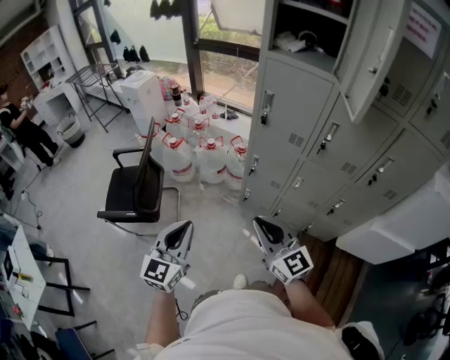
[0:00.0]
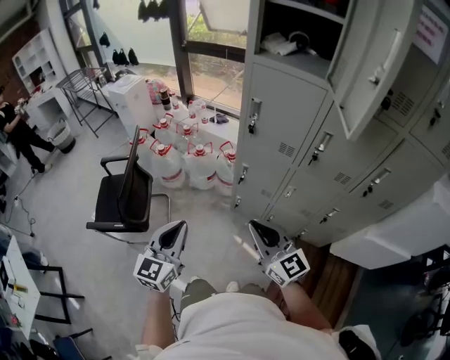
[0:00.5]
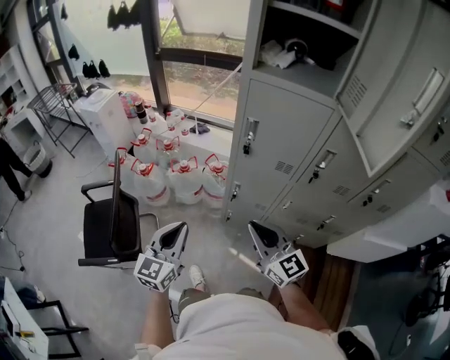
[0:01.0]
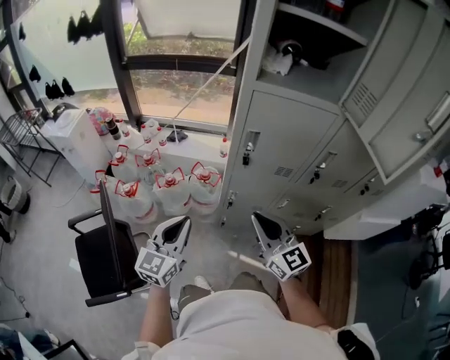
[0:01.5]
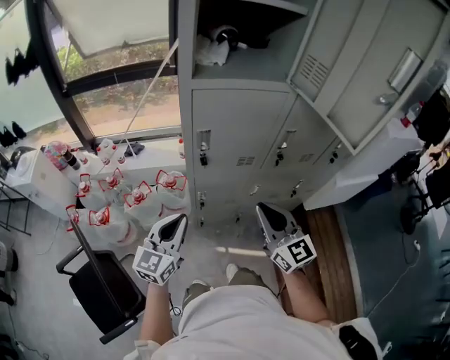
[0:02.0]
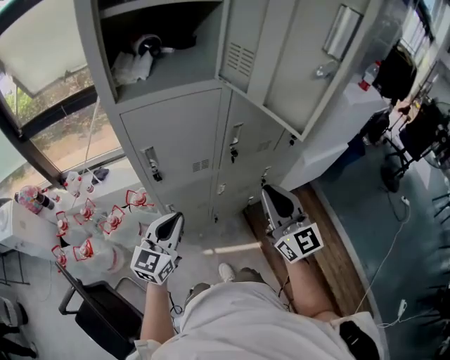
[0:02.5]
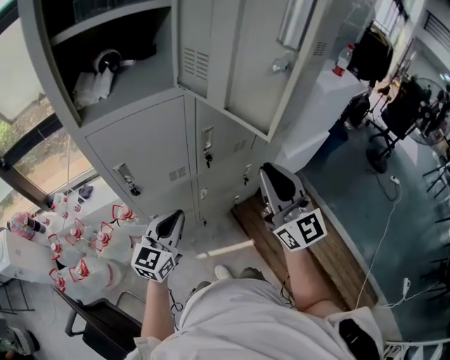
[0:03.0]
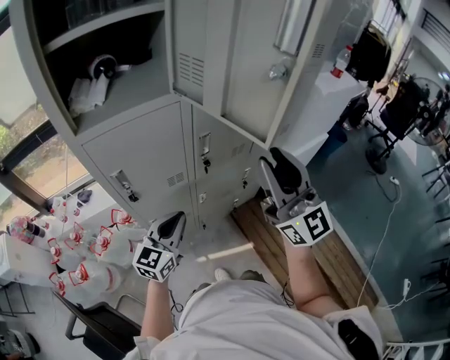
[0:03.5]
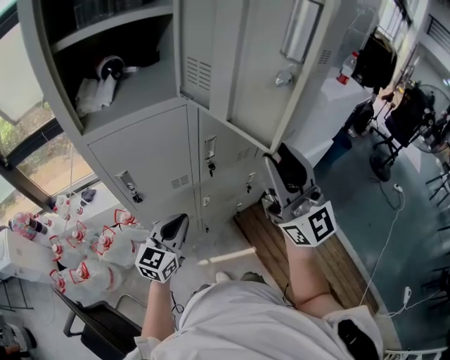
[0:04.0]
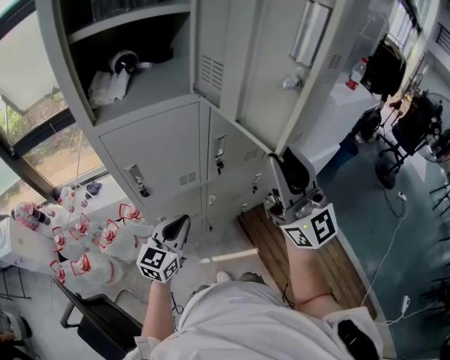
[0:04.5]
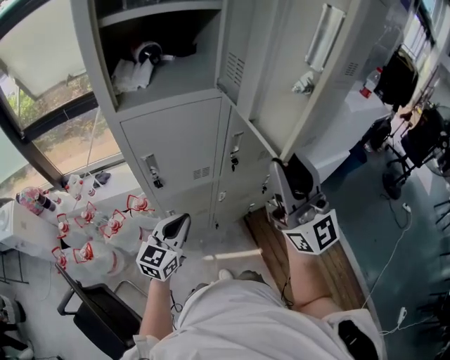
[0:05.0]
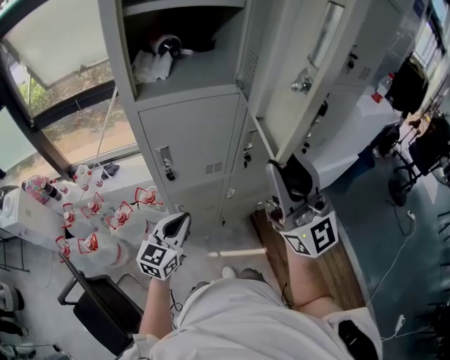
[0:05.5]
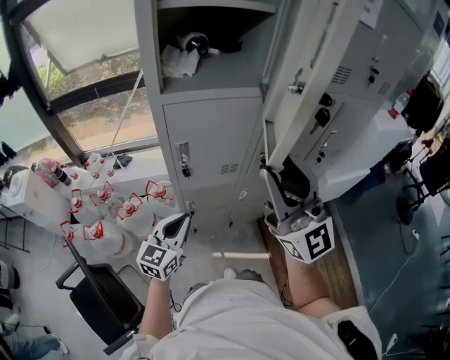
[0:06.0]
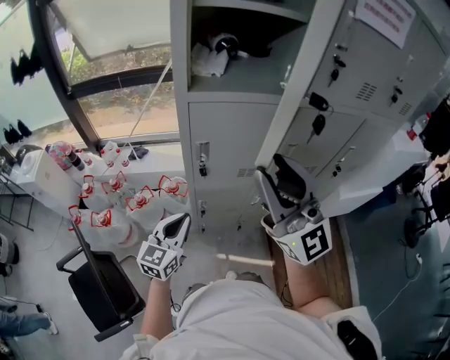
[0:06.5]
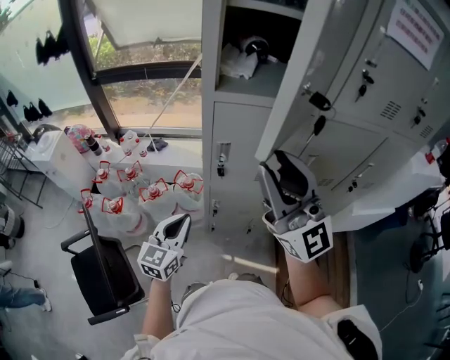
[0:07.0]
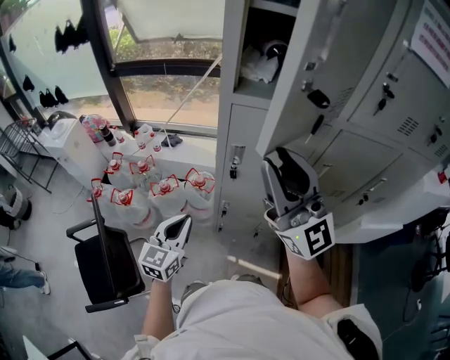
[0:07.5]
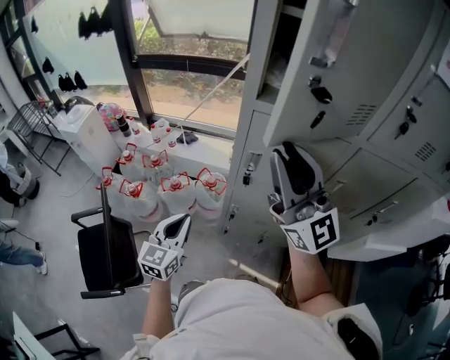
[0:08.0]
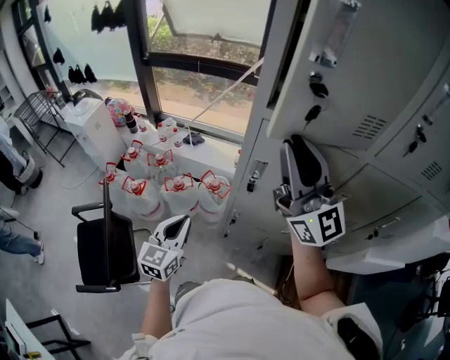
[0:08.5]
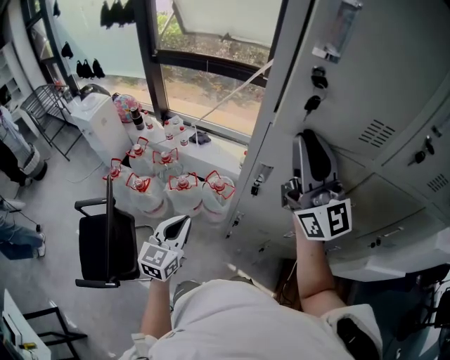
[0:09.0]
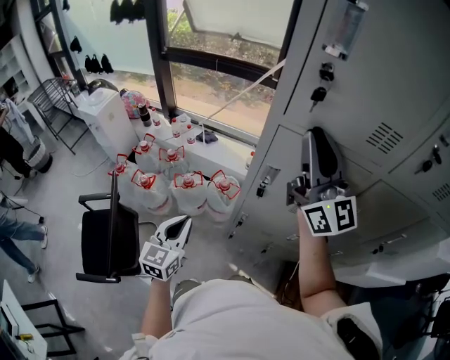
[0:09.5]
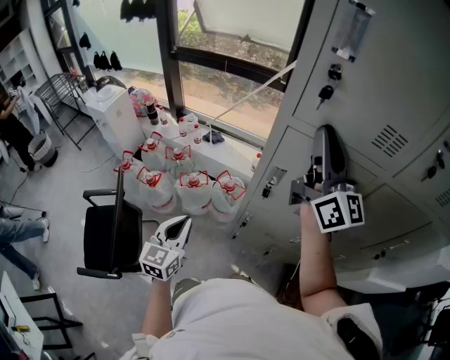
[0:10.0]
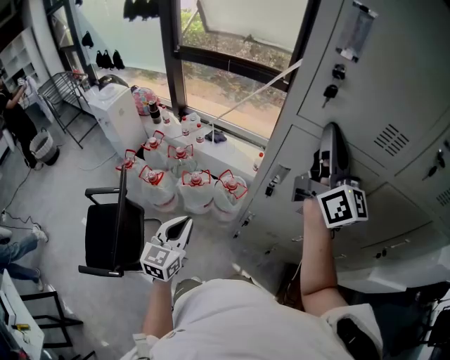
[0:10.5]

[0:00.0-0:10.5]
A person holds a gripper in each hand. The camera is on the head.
0.0 to 2.0 s: The left gripper ends up roughly 35 cm from where it was, and changes its angle by some 40 degrees, while the right gripper moves some 25 cm, and turns by approximately 40 degrees.
2.0 to 4.0 s: The right gripper shifts roughly 25 cm upward and to the right, changes its angle by approximately 30 degrees, and opens its fingers; the left gripper heads to the right and forward, covering roughly 20 cm, and changes its angle by approximately 20 degrees.
4.0 to 6.5 s: The two grippers go about 20 cm to the left. The right gripper swivels roughly 20 degrees; the left gripper rotates approximately 20 degrees.
6.5 to 8.5 s: The right gripper shifts approximately 15 cm forward, and turns by about 20 degrees, while the left gripper shifts roughly 10 cm to the left, and swivels about 30 degrees.
8.5 to 10.5 s: The right gripper moves forward, approximately 5 cm, and turns by approximately 30 degrees.

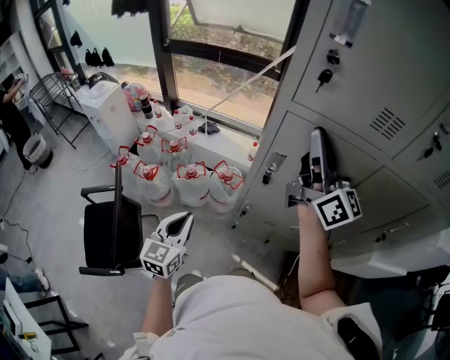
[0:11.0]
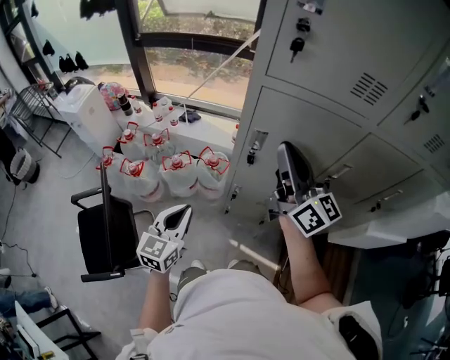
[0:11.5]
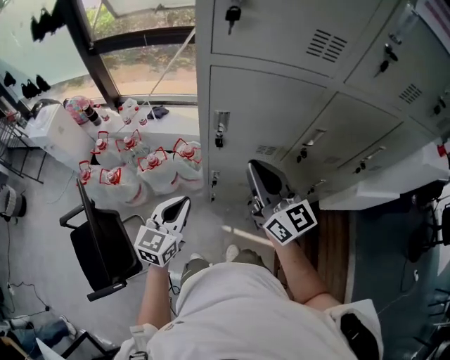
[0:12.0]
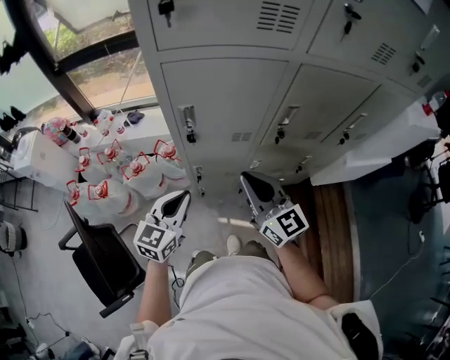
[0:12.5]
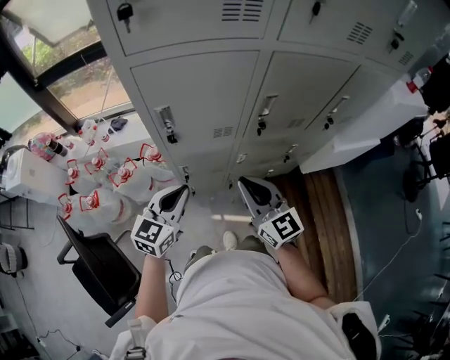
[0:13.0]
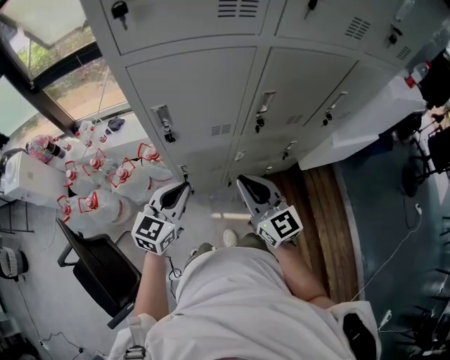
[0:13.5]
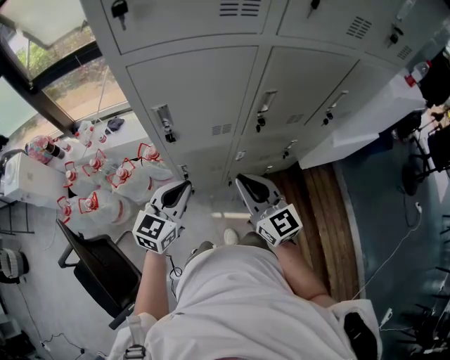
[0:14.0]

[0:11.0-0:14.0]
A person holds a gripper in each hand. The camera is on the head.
11.0 to 12.5 s: The left gripper is displaced to the right by approximately 15 cm, and rotates some 30 degrees, while the right gripper travels downward and backward by roughly 25 cm, and changes its angle by approximately 30 degrees.
12.5 to 14.0 s: The left gripper moves roughly 5 cm. The right gripper shifts by about 5 cm.

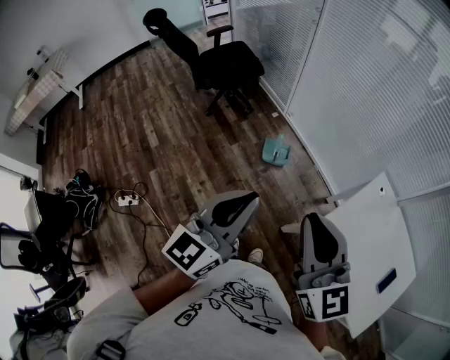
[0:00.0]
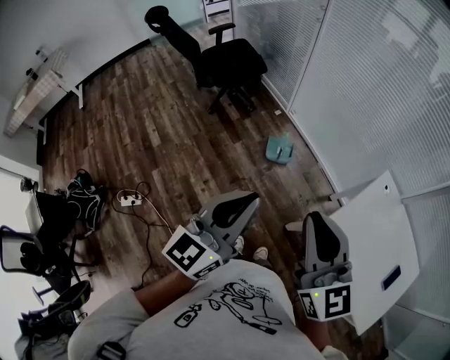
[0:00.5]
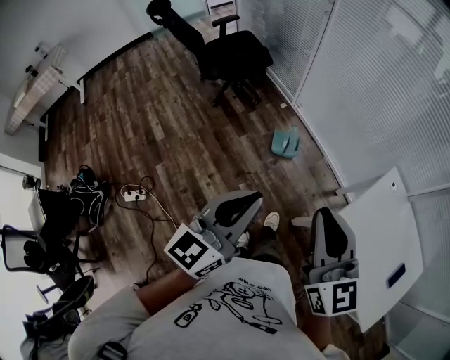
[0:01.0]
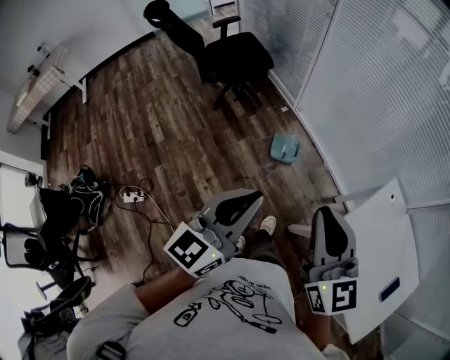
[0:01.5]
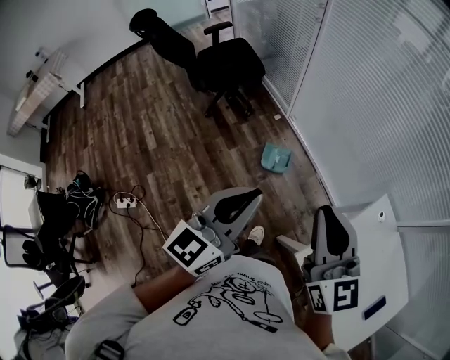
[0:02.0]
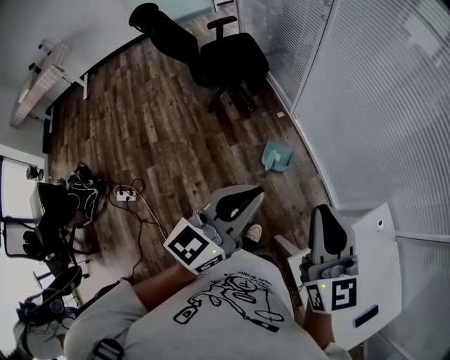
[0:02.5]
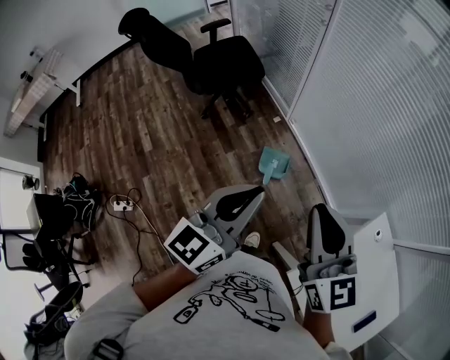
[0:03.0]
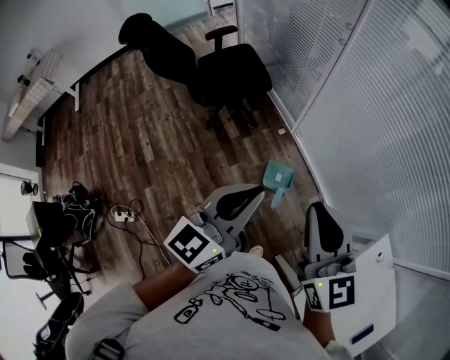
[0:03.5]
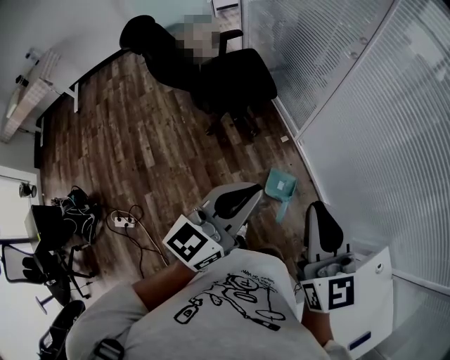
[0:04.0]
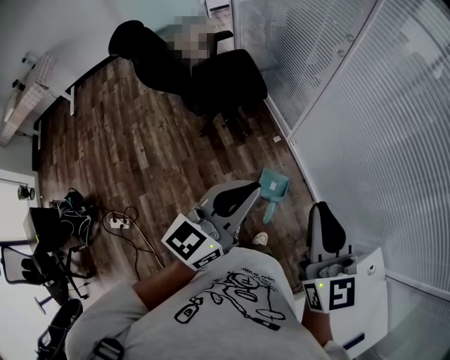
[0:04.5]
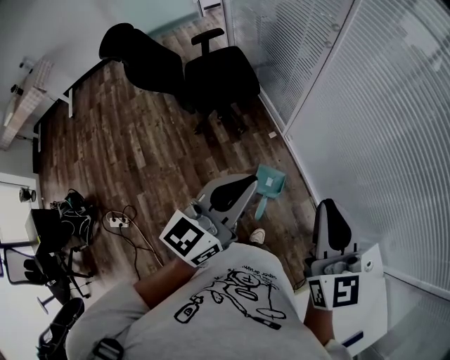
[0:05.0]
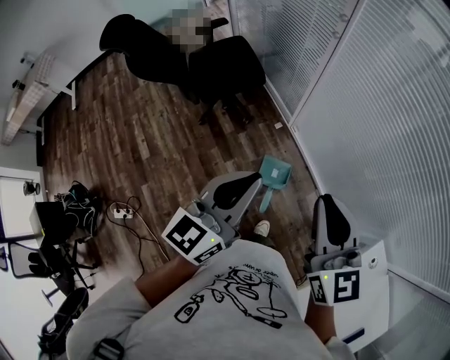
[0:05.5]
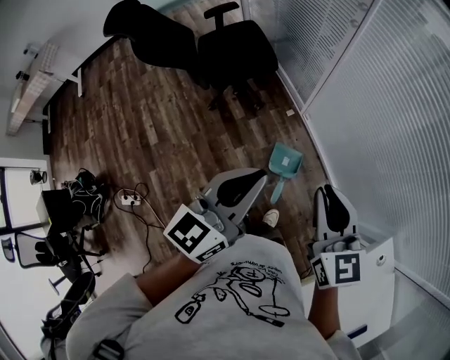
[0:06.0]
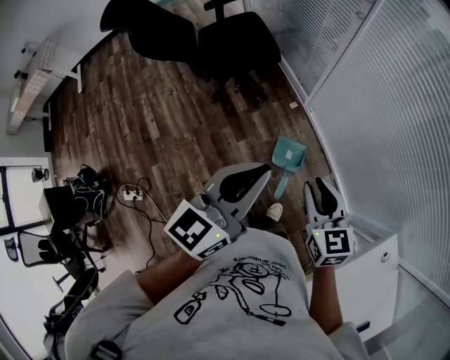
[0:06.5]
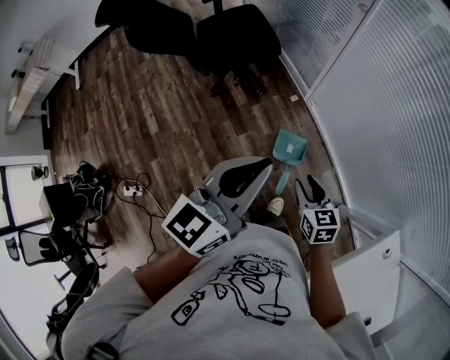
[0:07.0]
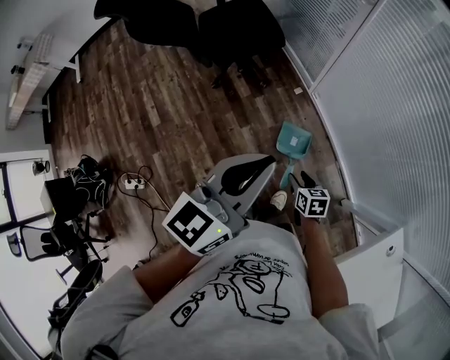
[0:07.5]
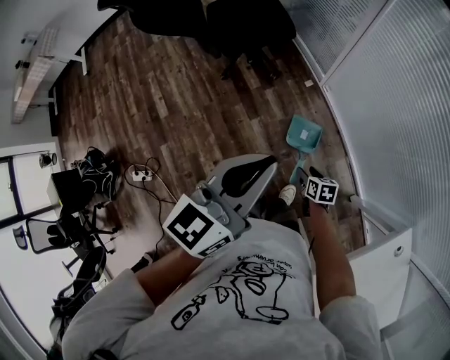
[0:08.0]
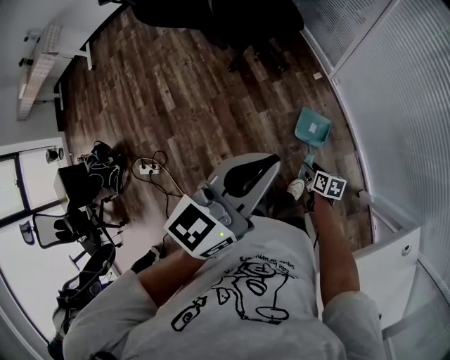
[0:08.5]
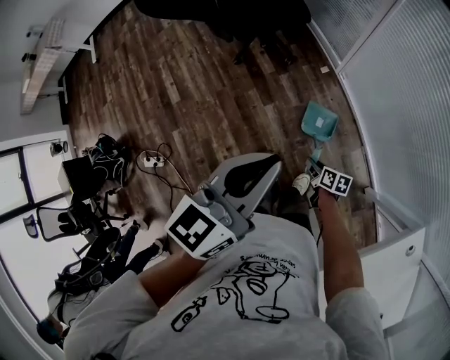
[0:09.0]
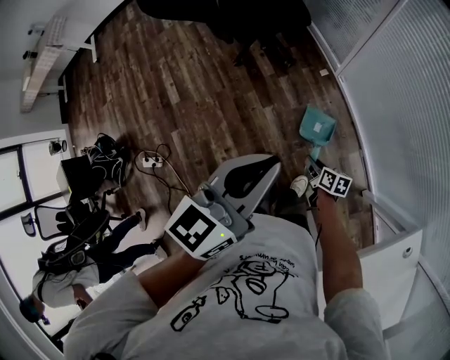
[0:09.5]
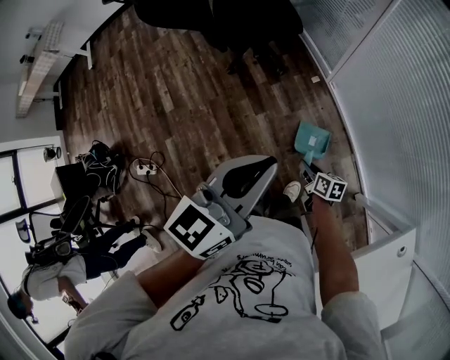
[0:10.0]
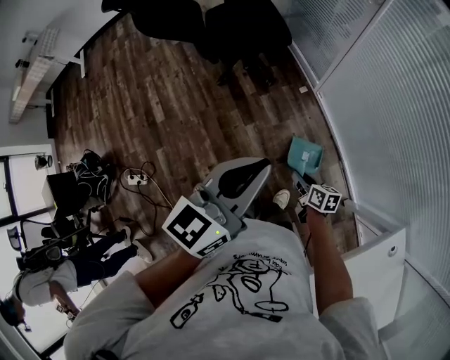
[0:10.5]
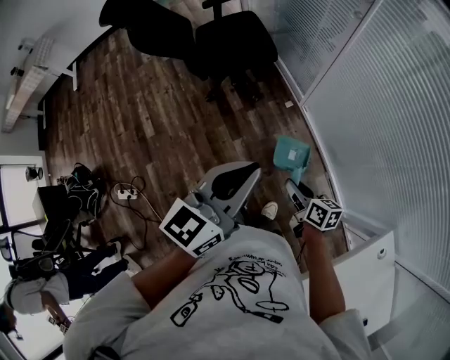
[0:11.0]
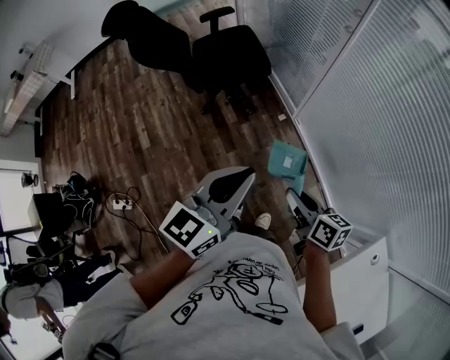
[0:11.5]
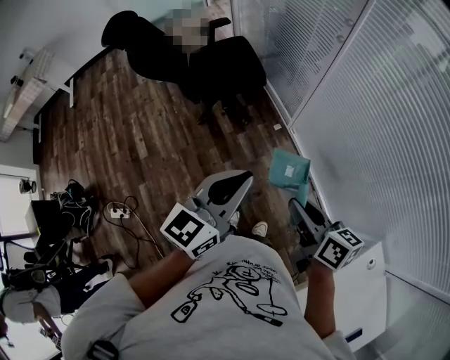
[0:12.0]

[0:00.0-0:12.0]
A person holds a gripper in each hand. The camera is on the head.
0.0 to 2.0 s: Both grippers travel together forward, some 20 cm.
2.0 to 4.0 s: The grippers both shift forward and to the left by roughly 30 cm.
4.0 to 6.0 s: The right gripper goes about 15 cm downward, to the right and forward; the left gripper is displaced to the right by about 5 cm.
6.0 to 8.0 s: The right gripper is displaced downward by about 50 cm, tilts its fingers about 40 degrees downward, and opens. The left gripper changes place by about 5 cm.
8.0 to 10.0 s: The right gripper closes up.
10.0 to 12.0 s: The right gripper goes about 40 cm upward, and rotates about 20 degrees.

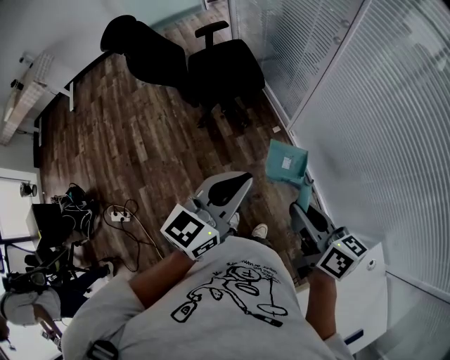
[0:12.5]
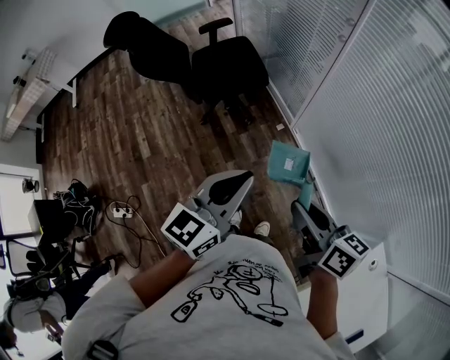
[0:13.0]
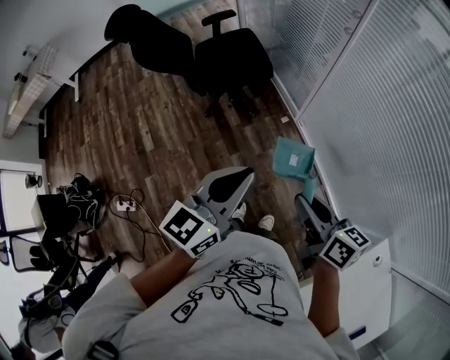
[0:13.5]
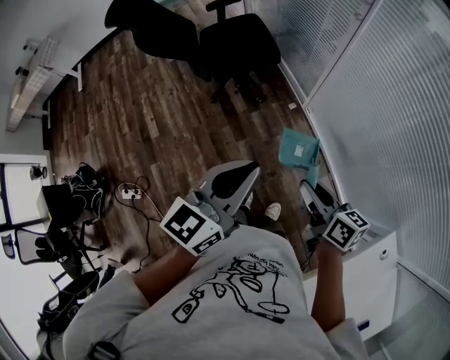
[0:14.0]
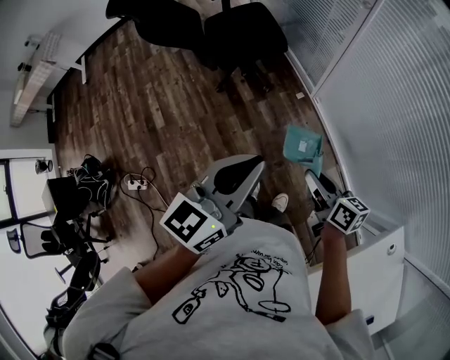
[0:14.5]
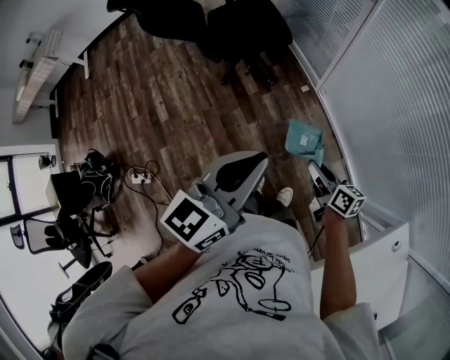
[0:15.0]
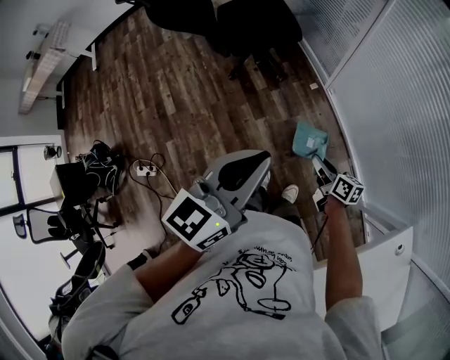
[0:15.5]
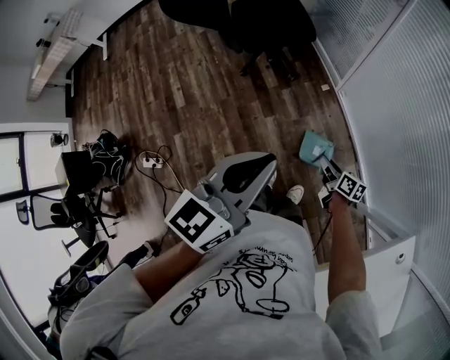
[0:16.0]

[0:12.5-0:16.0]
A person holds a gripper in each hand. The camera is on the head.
12.5 to 14.5 s: The right gripper goes approximately 15 cm downward.
14.5 to 16.0 s: The right gripper travels downward by some 20 cm.
